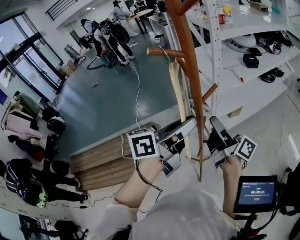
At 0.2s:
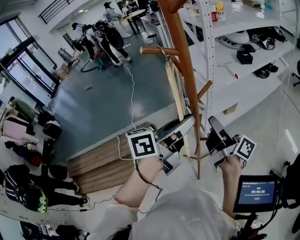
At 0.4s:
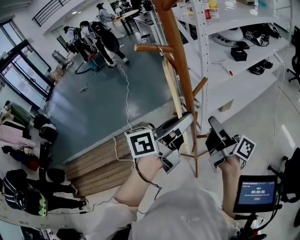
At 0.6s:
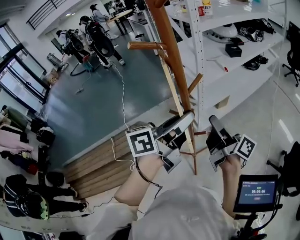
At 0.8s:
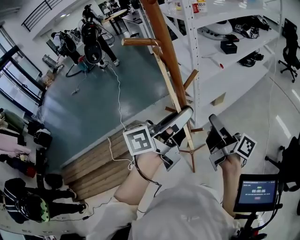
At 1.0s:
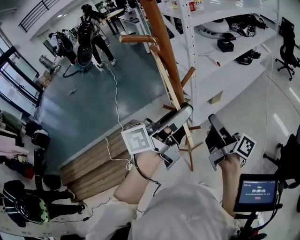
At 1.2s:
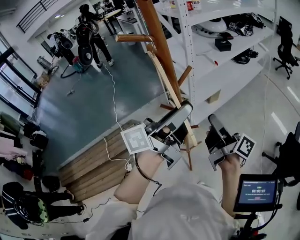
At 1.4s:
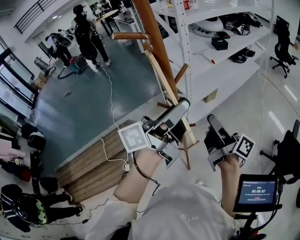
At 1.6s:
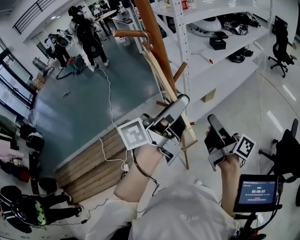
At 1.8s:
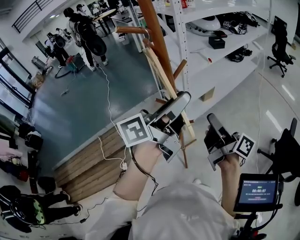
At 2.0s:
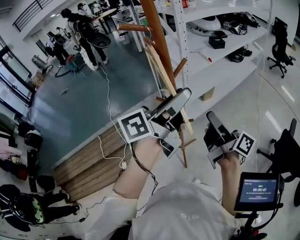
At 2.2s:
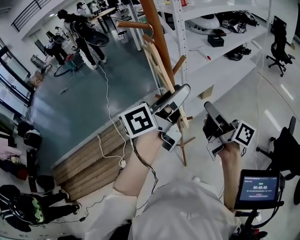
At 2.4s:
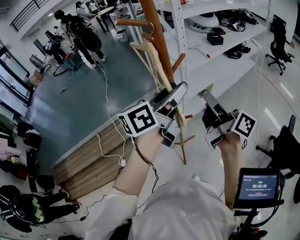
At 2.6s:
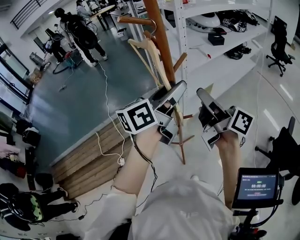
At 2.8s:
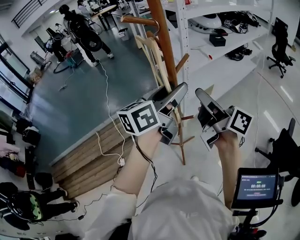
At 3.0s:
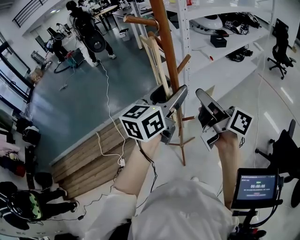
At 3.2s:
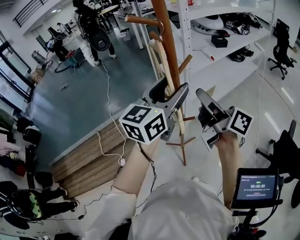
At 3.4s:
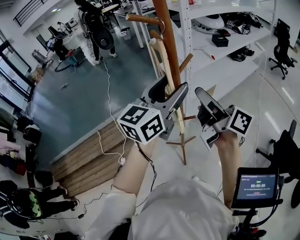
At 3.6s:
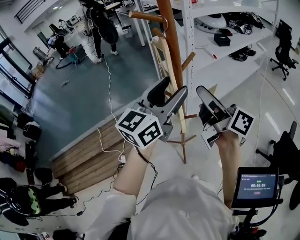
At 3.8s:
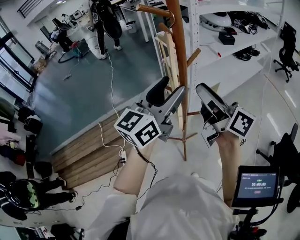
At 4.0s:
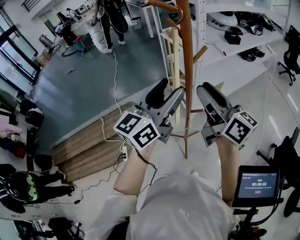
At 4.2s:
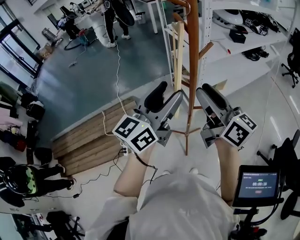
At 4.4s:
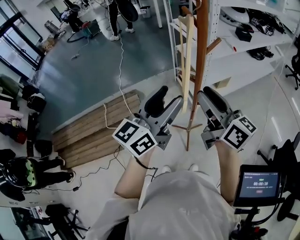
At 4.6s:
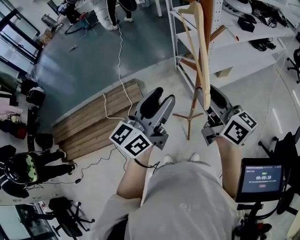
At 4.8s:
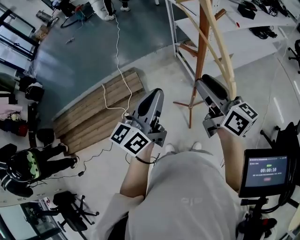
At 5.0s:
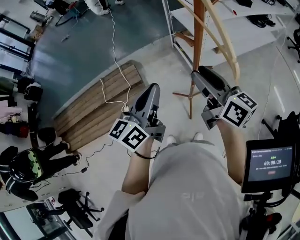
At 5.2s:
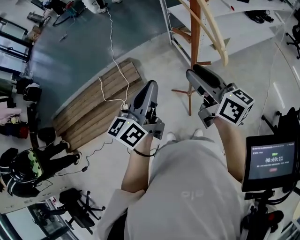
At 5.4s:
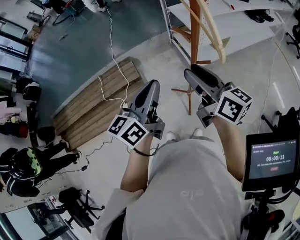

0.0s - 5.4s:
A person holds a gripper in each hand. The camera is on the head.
0.0s - 1.4s: The right gripper goes roughly 10 cm to the right and backward; the left gripper swivels approximately 20 degrees, and opens up.
1.4s - 2.8s: The left gripper moves forward, about 5 cm, and changes its angle by some 30 degrees. The right gripper heads upward, covering some 5 cm.
2.8s - 4.0s: The right gripper ends up about 5 cm from where it was, and turns by roughly 20 degrees. The left gripper shifts about 10 cm to the left and backward, and changes its angle by some 20 degrees.
4.0s - 5.4s: The left gripper moves downward, to the left and backward, some 20 cm, turns by approximately 20 degrees, and closes, while the right gripper travels downward and to the left by some 15 cm.

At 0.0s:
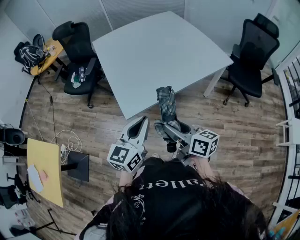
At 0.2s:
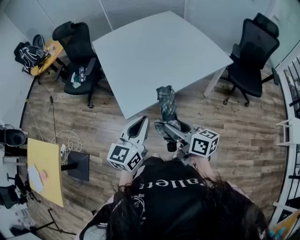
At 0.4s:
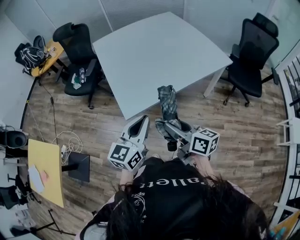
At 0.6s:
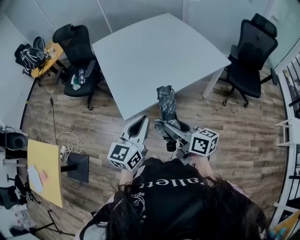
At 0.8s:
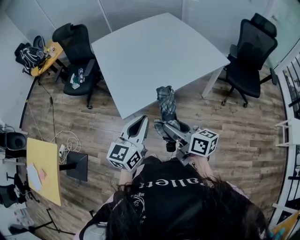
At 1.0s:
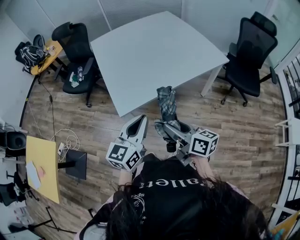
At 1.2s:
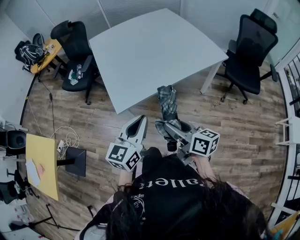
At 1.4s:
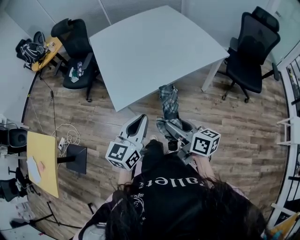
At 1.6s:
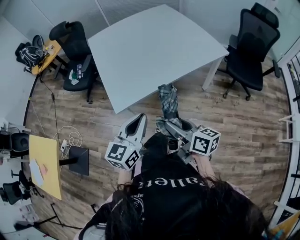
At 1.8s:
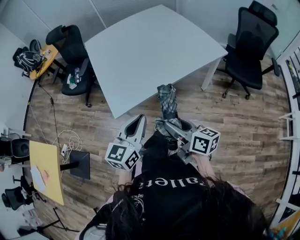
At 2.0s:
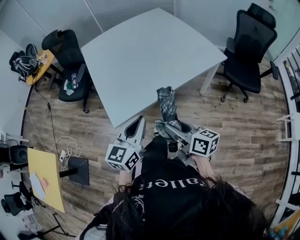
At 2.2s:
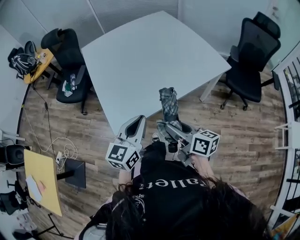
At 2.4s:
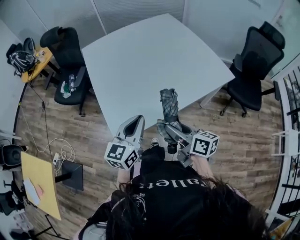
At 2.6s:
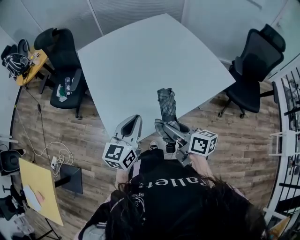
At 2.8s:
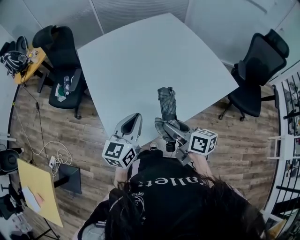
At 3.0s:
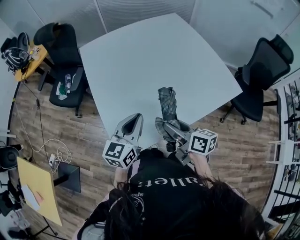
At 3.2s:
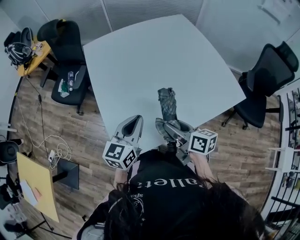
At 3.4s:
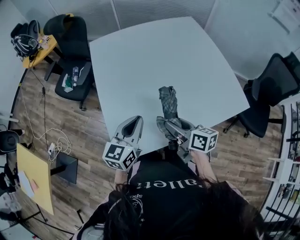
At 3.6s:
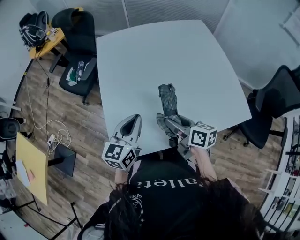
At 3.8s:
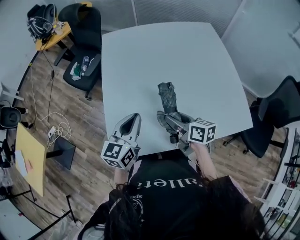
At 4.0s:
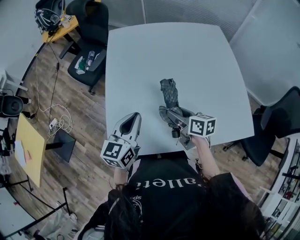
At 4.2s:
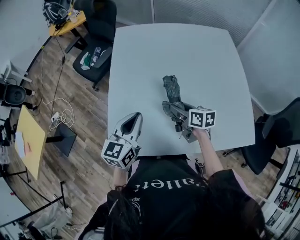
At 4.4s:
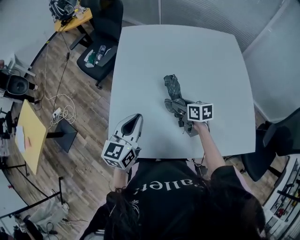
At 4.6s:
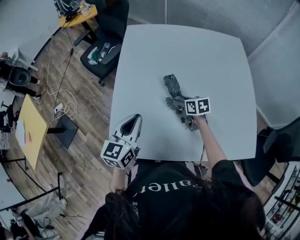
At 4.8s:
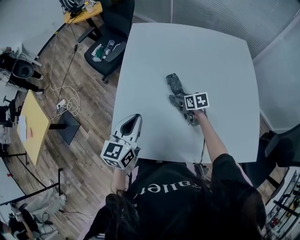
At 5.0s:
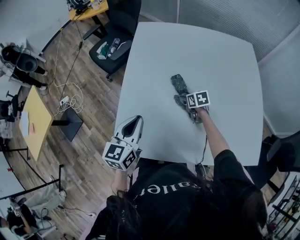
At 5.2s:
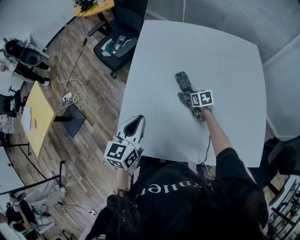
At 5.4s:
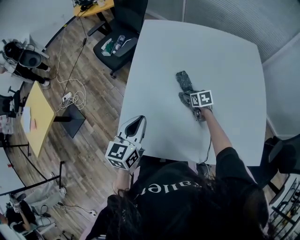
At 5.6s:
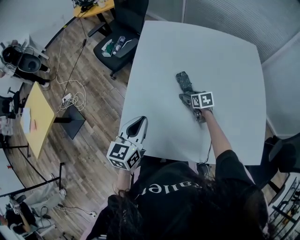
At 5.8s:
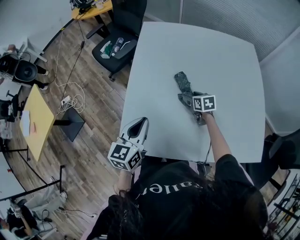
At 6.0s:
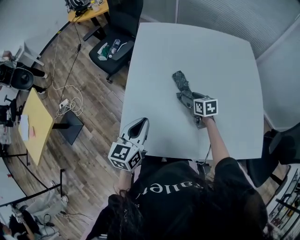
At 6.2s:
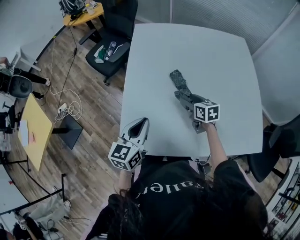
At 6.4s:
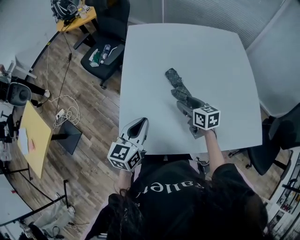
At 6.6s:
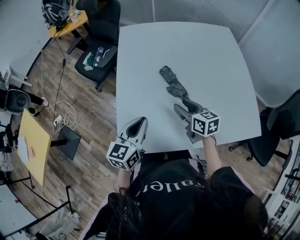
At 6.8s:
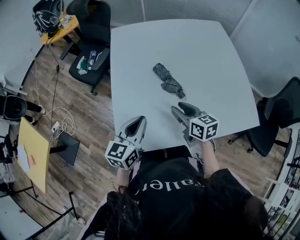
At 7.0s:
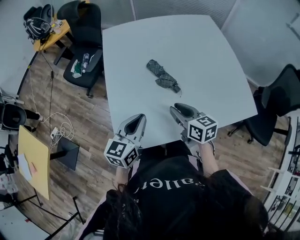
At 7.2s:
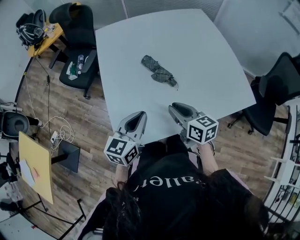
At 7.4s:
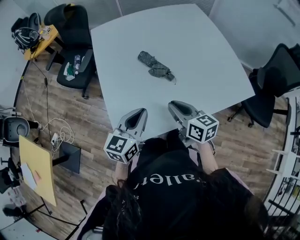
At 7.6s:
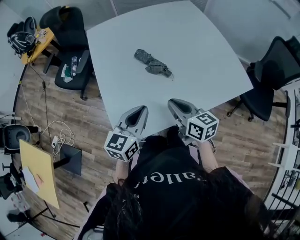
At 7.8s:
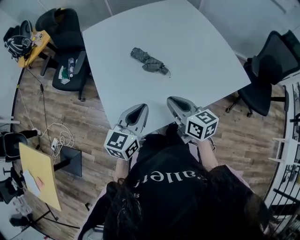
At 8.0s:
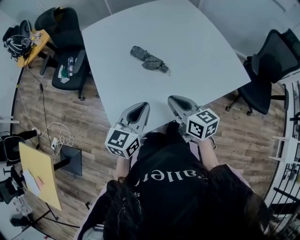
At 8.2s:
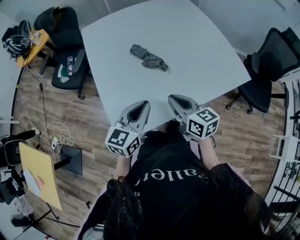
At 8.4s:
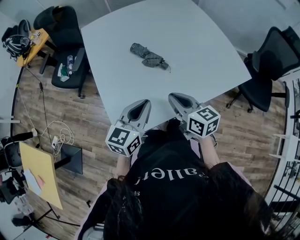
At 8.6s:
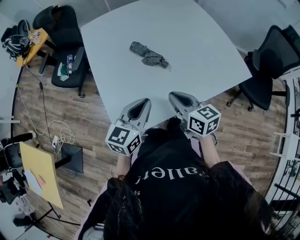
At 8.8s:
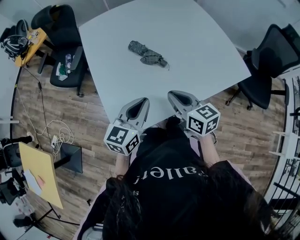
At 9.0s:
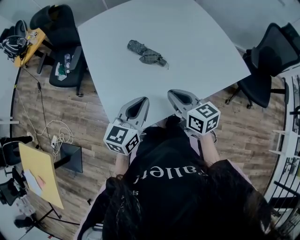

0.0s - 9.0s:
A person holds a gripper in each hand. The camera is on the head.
0.0s - 1.6s: The two grippers go approximately 5 cm to the right.
1.6s - 3.0s: The grippers both shift forward by roughly 30 cm.
3.0s - 4.4s: The left gripper shifts by approximately 10 cm, and changes its angle by roughly 30 degrees, while the right gripper moves approximately 25 cm, and turns by roughly 40 degrees.
4.4s - 6.0s: The right gripper goes approximately 5 cm forward, and travels downward and back again, roughly 10 cm each way; the left gripper travels to the left by about 5 cm.
6.0s - 7.6s: The left gripper moves backward and to the right, some 10 cm, and swivels some 30 degrees. The right gripper heads backward and upward, covering about 30 cm, turns by about 30 degrees, and closes.
7.6s - 9.0s: The grippers stay close to where they were, moving slightly.

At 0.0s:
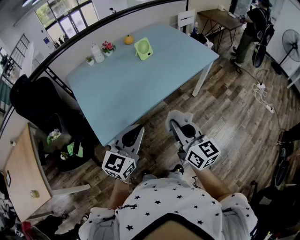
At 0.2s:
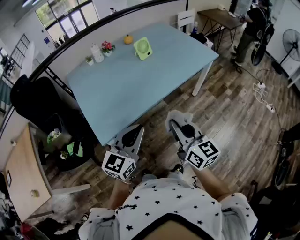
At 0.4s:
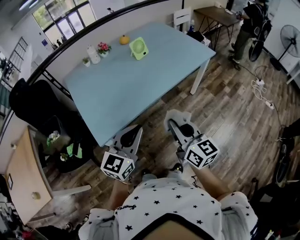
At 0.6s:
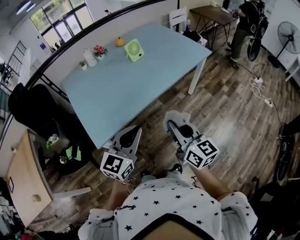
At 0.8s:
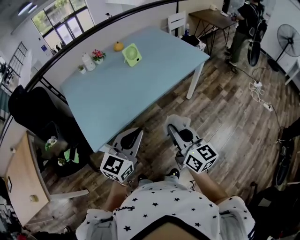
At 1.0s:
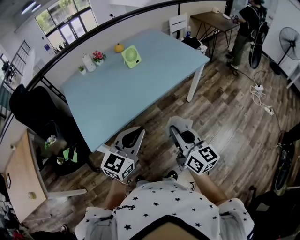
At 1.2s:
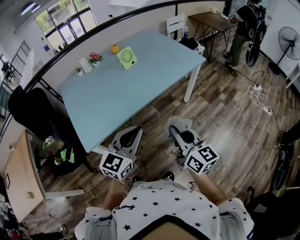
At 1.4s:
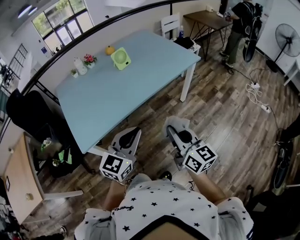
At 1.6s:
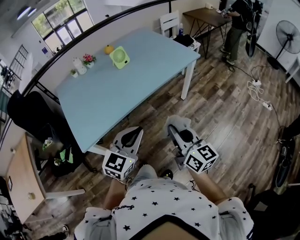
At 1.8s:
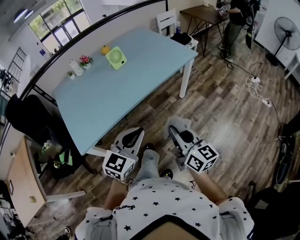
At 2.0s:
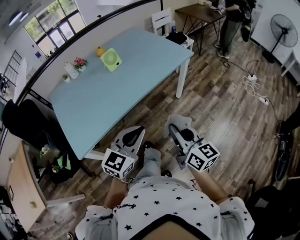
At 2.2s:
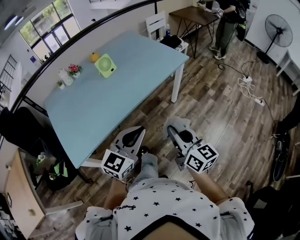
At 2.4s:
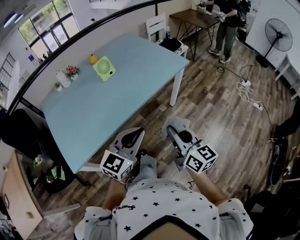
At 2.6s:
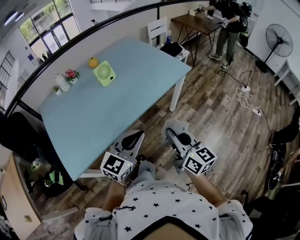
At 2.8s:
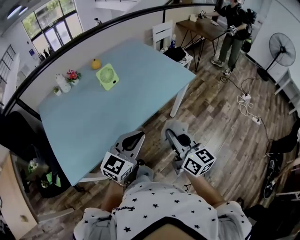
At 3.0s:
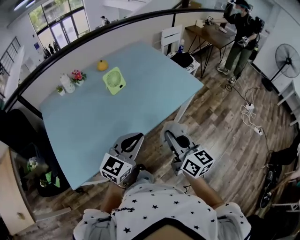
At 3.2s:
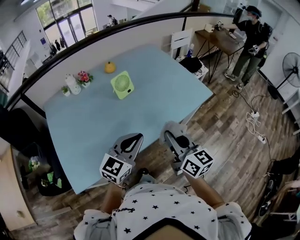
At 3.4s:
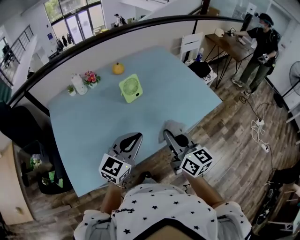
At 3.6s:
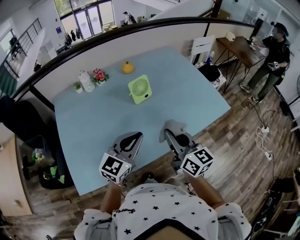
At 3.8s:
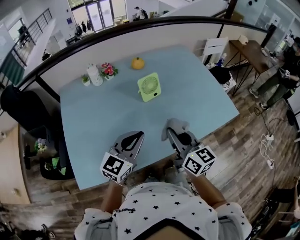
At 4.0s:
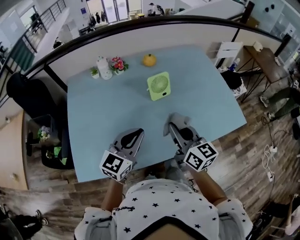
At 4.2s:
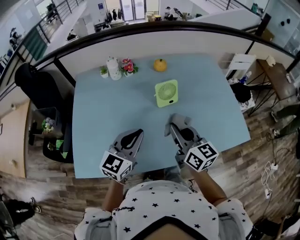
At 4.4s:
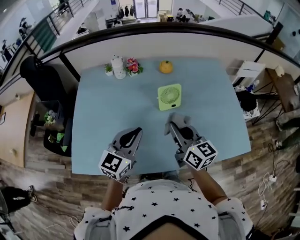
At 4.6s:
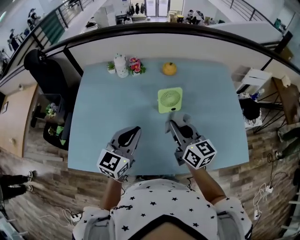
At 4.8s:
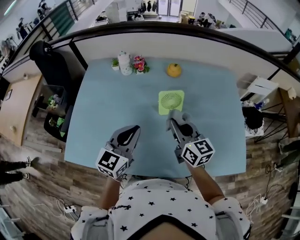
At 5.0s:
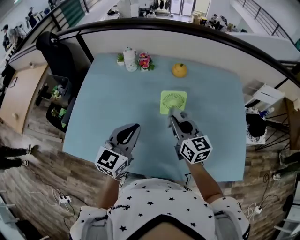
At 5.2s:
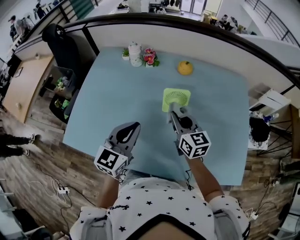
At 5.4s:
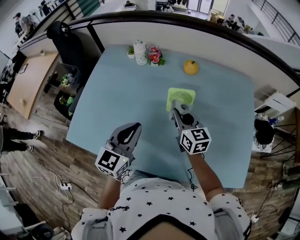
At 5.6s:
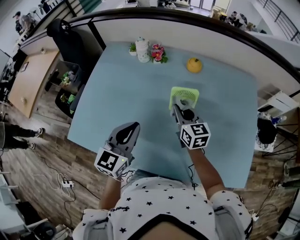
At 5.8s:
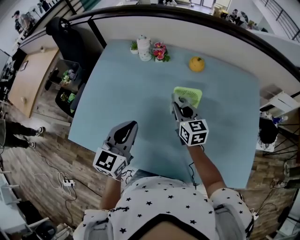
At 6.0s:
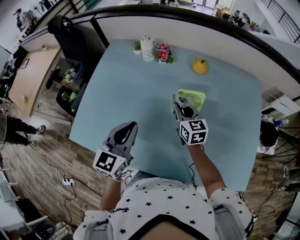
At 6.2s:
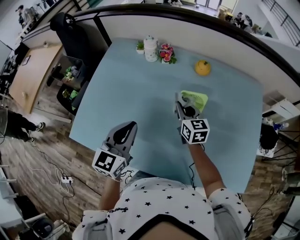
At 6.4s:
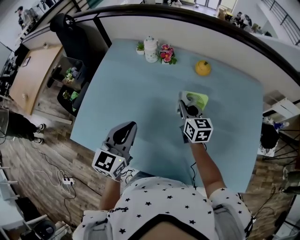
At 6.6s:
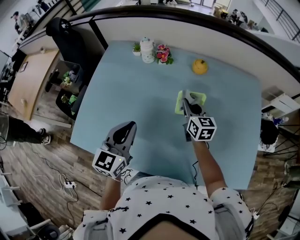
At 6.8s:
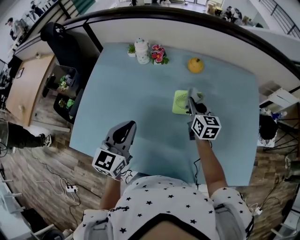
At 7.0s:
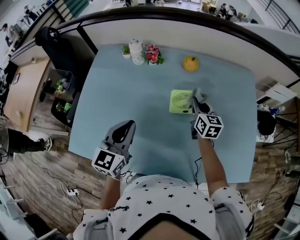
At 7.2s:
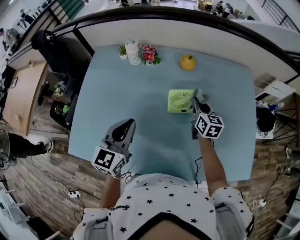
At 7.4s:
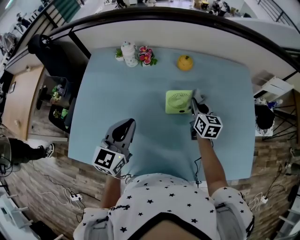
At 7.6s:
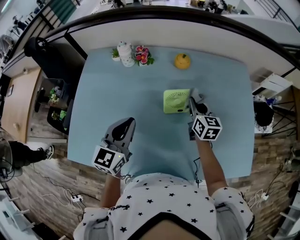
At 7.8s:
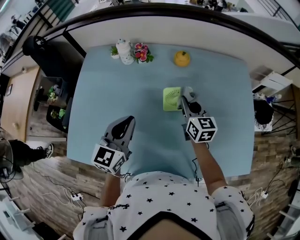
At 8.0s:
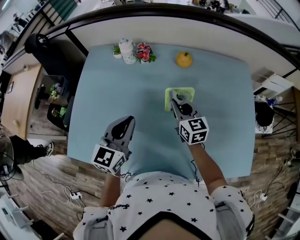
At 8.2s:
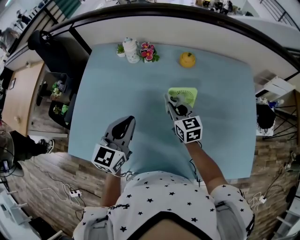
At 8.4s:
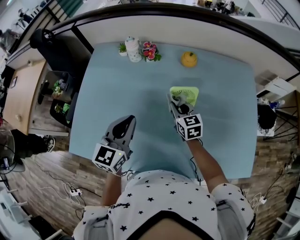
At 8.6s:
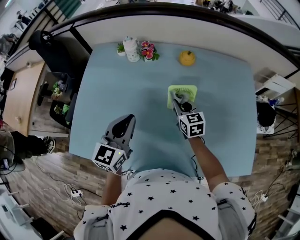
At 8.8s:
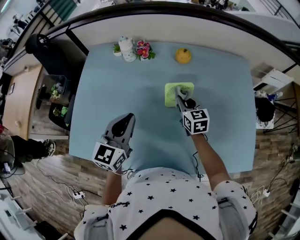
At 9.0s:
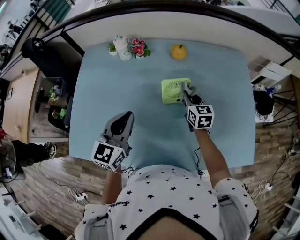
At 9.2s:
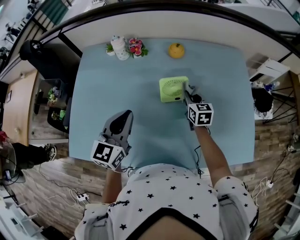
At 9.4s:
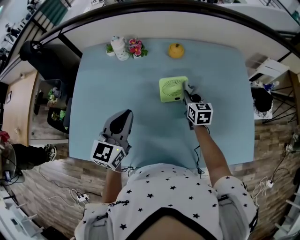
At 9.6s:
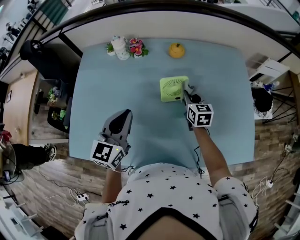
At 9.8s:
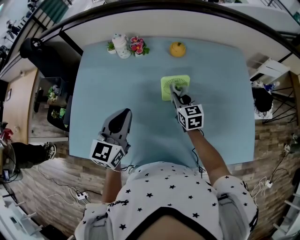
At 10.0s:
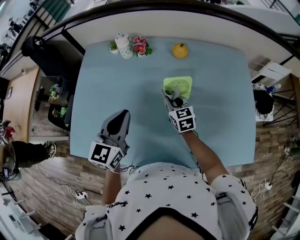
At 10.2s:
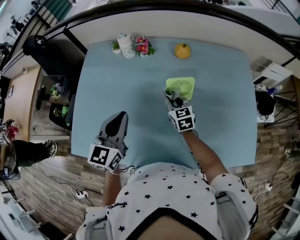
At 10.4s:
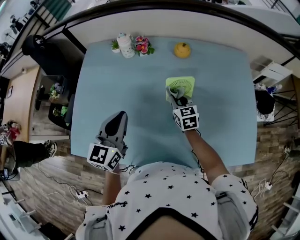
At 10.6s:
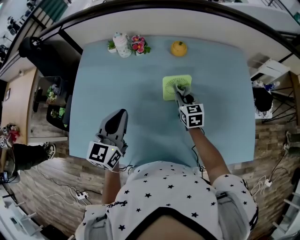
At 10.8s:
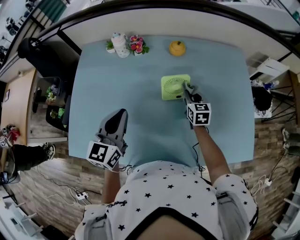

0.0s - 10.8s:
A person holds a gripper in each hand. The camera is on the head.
0.0s - 1.6s: The two grippers go some 15 cm to the right.
1.6s - 3.0s: Both grippers move forward, about 20 cm.
3.0s - 4.6s: The right gripper shifts by about 35 cm, and changes its angle by some 40 degrees. Meanwhile the left gripper moves approximately 25 cm, and changes its angle by roughly 40 degrees.
4.6s - 6.2s: The left gripper ends up roughly 5 cm from where it was, and swivels some 20 degrees. Meanwhile the right gripper heads forward and downward, covering roughly 20 cm.
6.2s - 7.8s: The left gripper travels forward by approximately 5 cm. The right gripper travels to the right by some 10 cm.
7.8s - 9.2s: The right gripper is displaced downward by roughly 10 cm.
9.2s - 10.8s: The right gripper reaches approximately 10 cm to the left, then returns.
